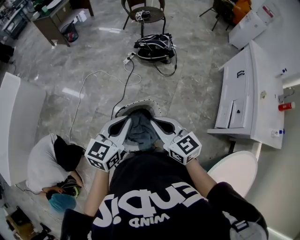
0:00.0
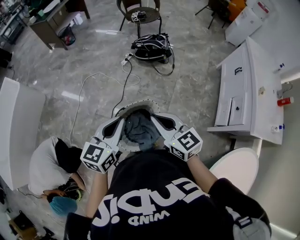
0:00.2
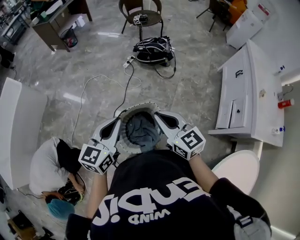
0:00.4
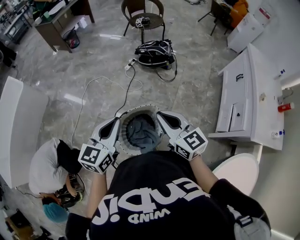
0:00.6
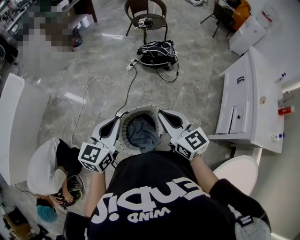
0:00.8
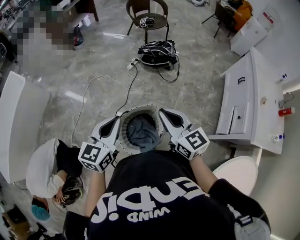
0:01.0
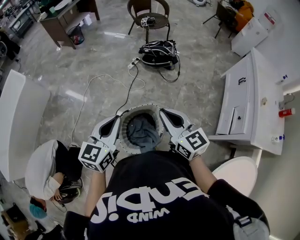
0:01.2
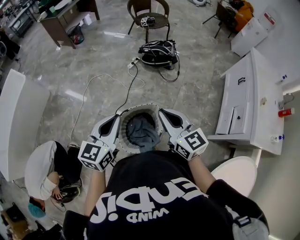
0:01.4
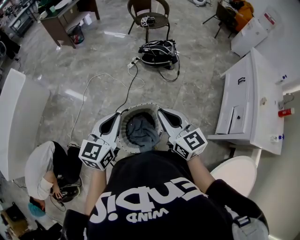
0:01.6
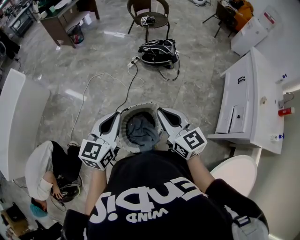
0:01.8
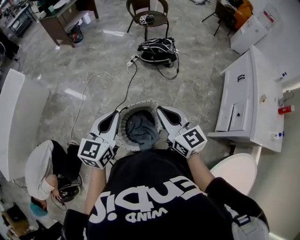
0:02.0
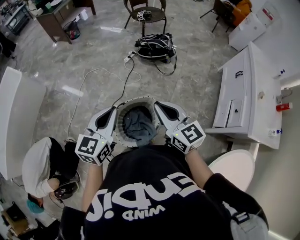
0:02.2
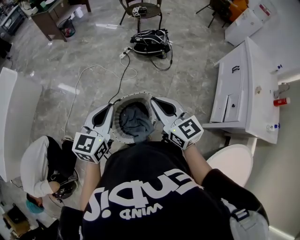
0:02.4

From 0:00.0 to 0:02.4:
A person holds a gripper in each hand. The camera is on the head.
From 0:00.0 to 0:01.2: The right gripper shifts by approximately 5 cm. The left gripper travels to the left by about 5 cm.
From 0:01.2 to 0:02.4: Both grippers stay about where they are.

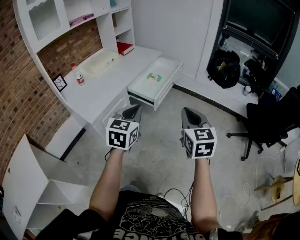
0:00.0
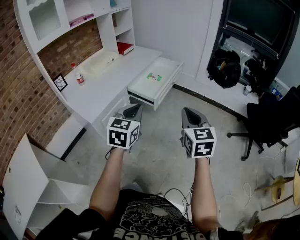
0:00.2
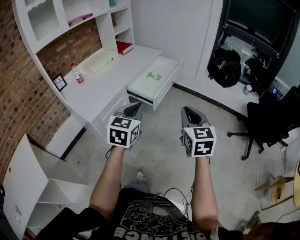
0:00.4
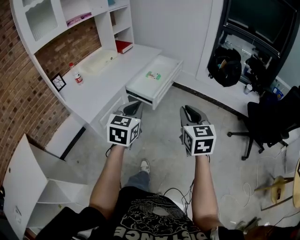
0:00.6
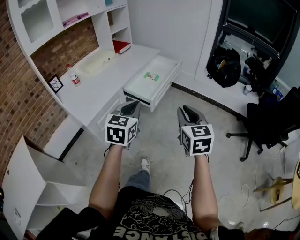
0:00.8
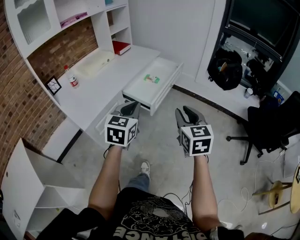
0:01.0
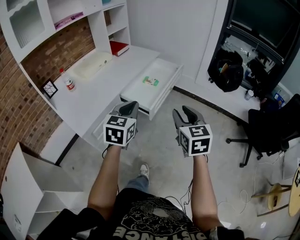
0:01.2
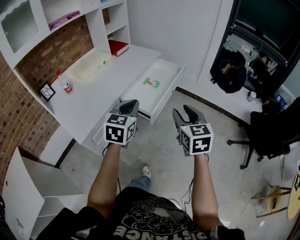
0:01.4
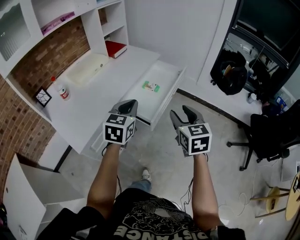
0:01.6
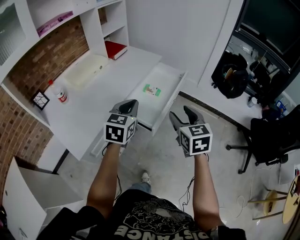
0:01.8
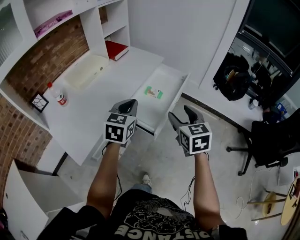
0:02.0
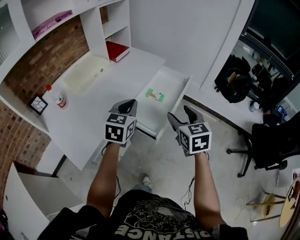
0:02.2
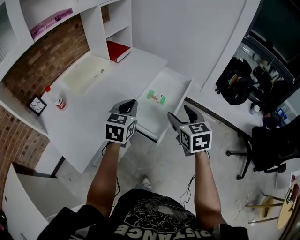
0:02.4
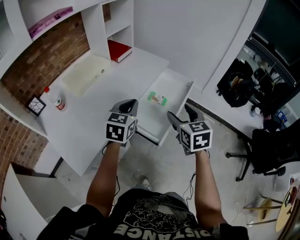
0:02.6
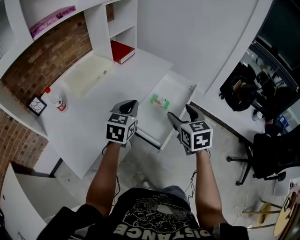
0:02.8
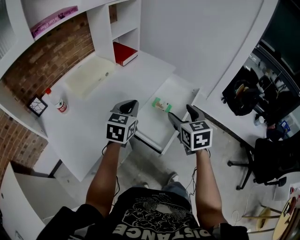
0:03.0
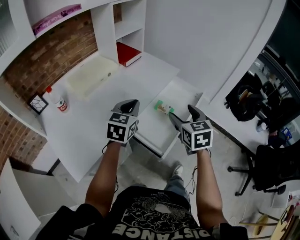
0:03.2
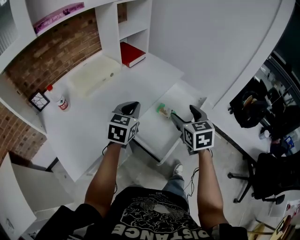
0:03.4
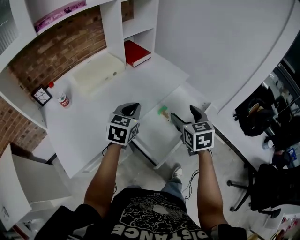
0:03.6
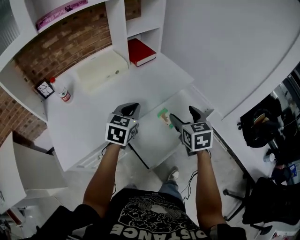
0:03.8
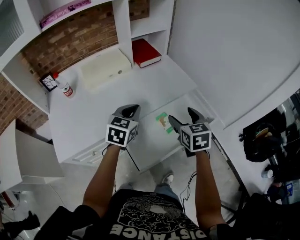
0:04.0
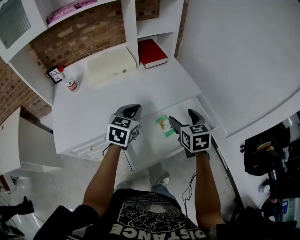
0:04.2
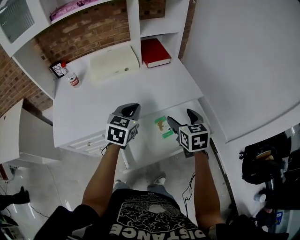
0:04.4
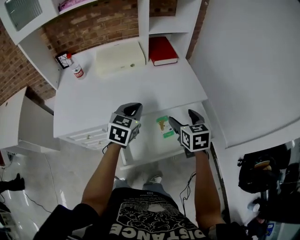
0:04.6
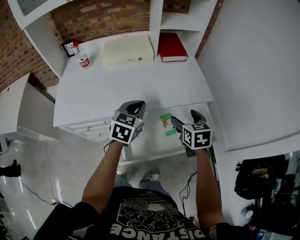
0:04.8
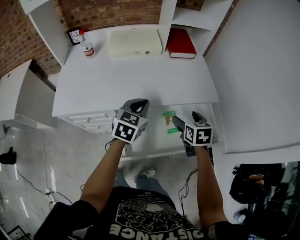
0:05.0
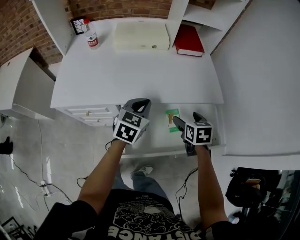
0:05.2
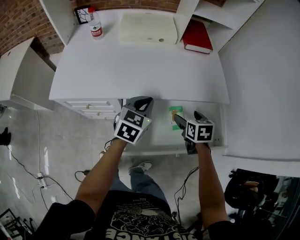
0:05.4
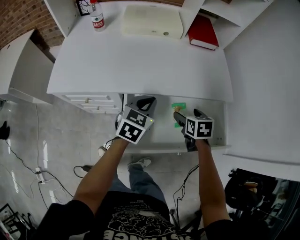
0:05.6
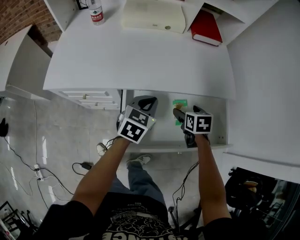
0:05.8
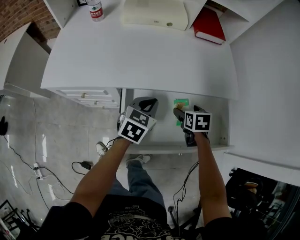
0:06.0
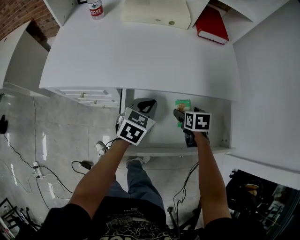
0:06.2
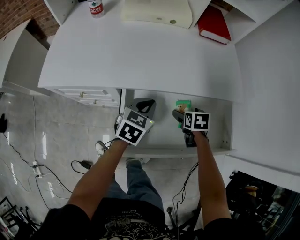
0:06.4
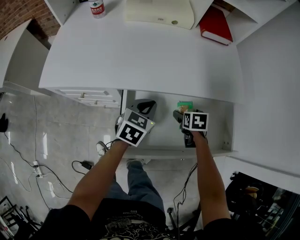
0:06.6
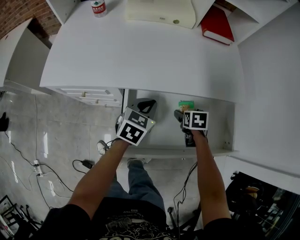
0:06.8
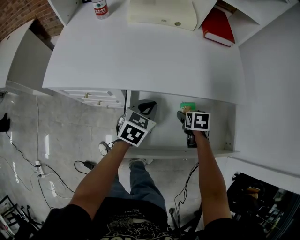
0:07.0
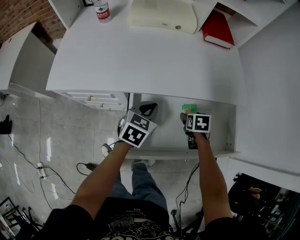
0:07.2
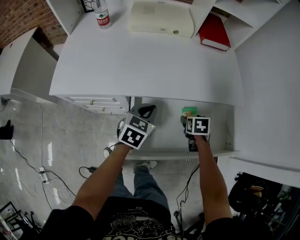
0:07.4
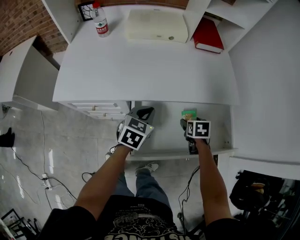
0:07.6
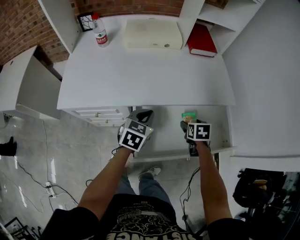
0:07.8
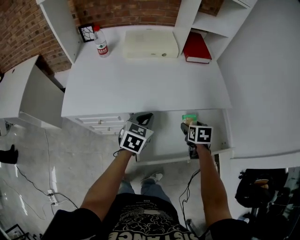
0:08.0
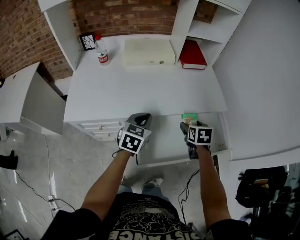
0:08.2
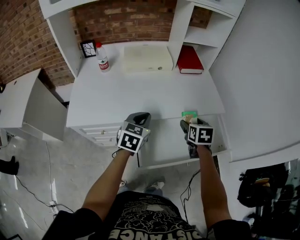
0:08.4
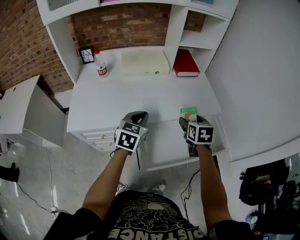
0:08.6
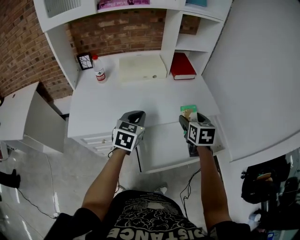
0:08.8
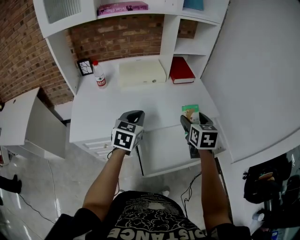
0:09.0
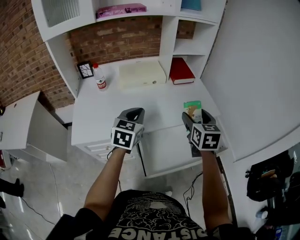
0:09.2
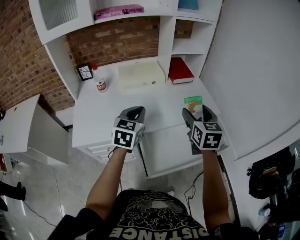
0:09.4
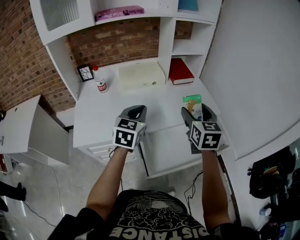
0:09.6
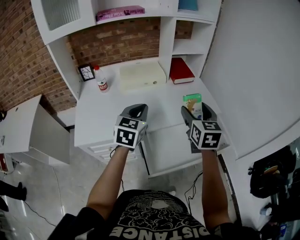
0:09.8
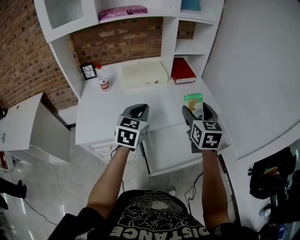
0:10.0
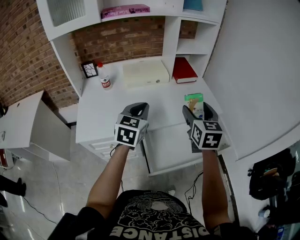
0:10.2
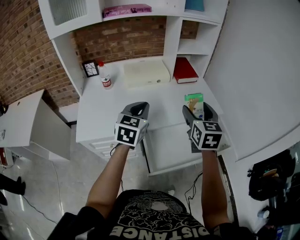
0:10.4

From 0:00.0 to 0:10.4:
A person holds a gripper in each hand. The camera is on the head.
From 0:00.0 to 0:01.4: Both grippers travel together forward, roughly 20 cm.
From 0:01.4 to 0:03.0: The grippers both shift forward by some 25 cm.
From 0:03.0 to 0:04.4: The right gripper moves some 20 cm, and rotates some 30 degrees. Meanwhile the left gripper ends up some 15 cm from where it was, and swivels about 30 degrees.
From 0:04.4 to 0:06.0: Both grippers move downward, approximately 20 cm. The right gripper rotates roughly 30 degrees.
From 0:06.0 to 0:07.4: The grippers stay close to where they were, moving slightly.
From 0:07.4 to 0:09.0: The right gripper travels upward by roughly 35 cm, and angles its fingers upward, by about 40 degrees. Meanwhile the left gripper shifts roughly 20 cm upward.
From 0:09.0 to 0:10.4: Both grippers travel together upward, about 5 cm.

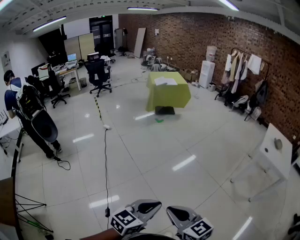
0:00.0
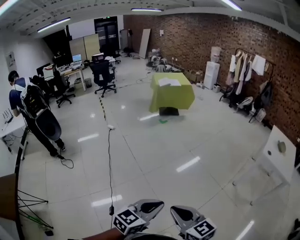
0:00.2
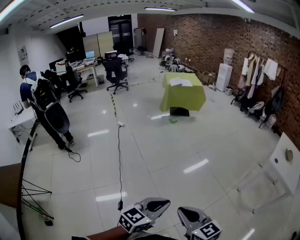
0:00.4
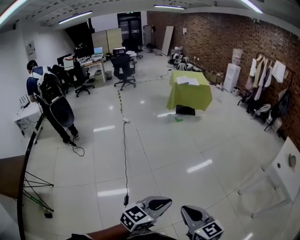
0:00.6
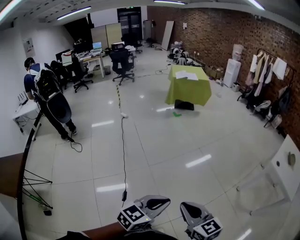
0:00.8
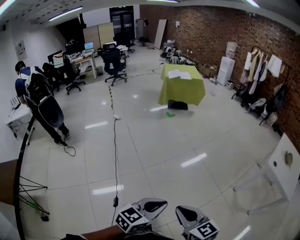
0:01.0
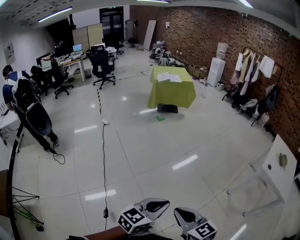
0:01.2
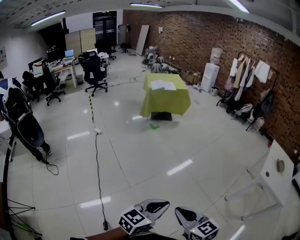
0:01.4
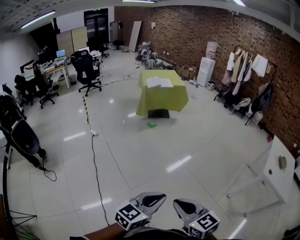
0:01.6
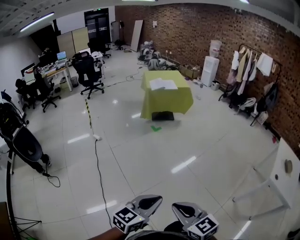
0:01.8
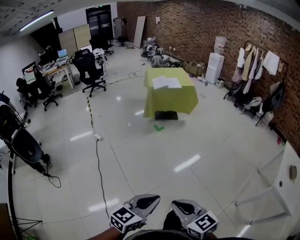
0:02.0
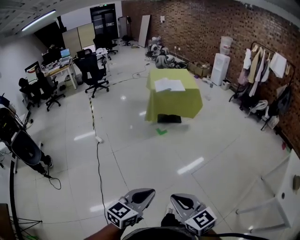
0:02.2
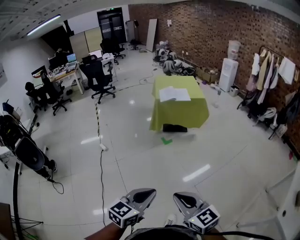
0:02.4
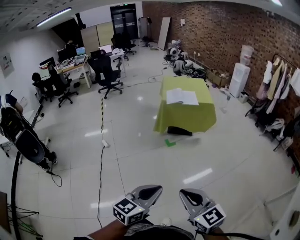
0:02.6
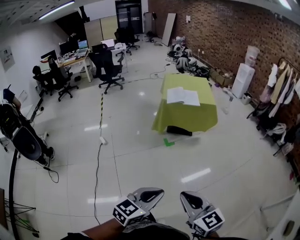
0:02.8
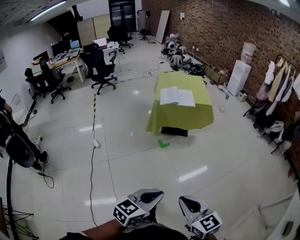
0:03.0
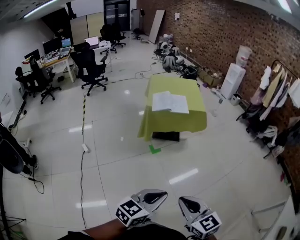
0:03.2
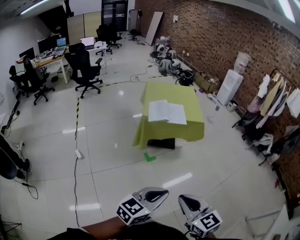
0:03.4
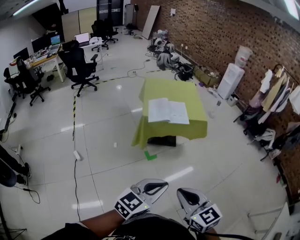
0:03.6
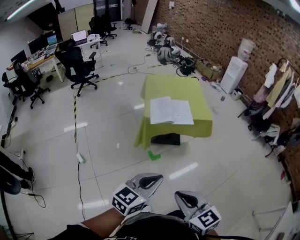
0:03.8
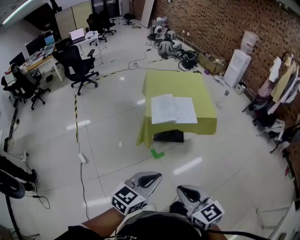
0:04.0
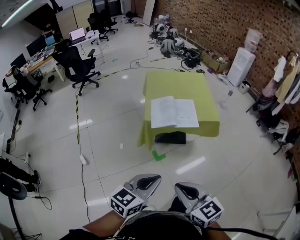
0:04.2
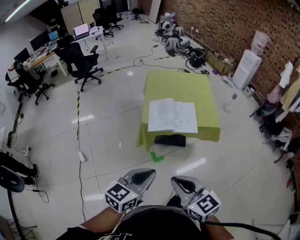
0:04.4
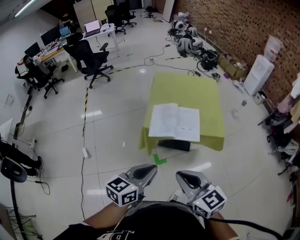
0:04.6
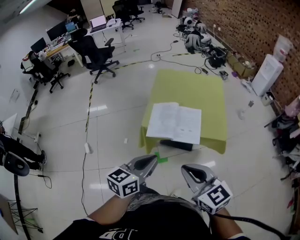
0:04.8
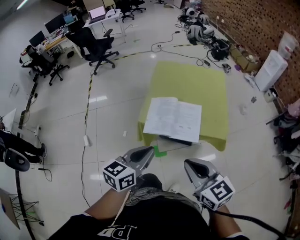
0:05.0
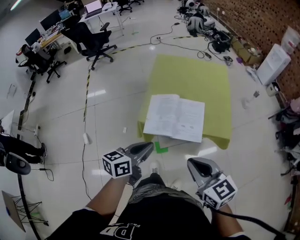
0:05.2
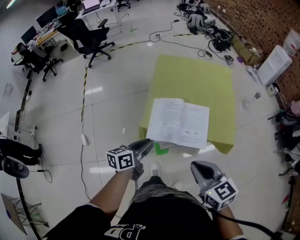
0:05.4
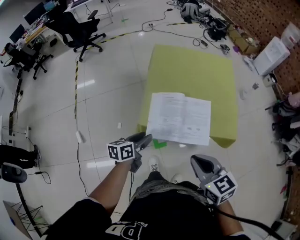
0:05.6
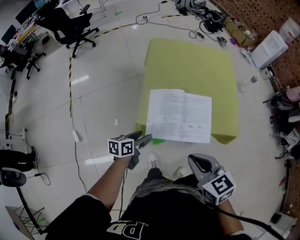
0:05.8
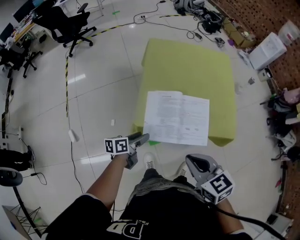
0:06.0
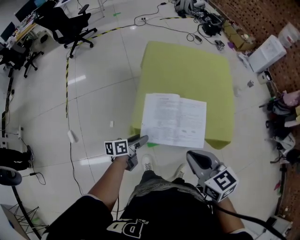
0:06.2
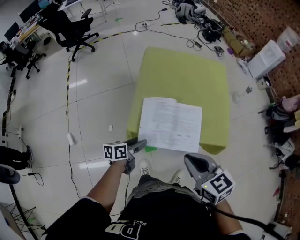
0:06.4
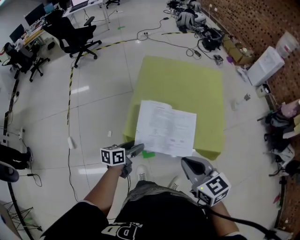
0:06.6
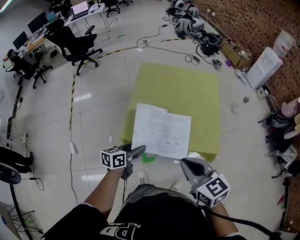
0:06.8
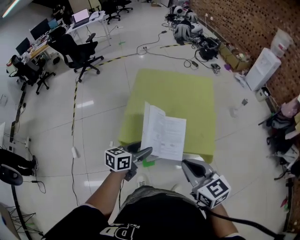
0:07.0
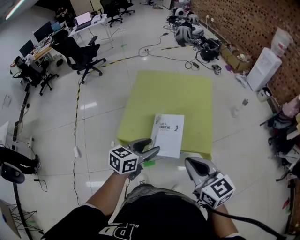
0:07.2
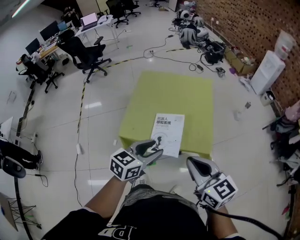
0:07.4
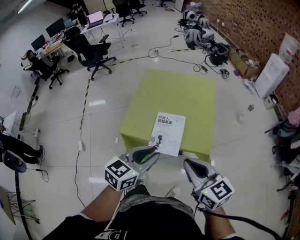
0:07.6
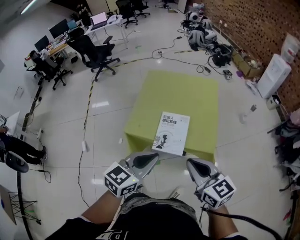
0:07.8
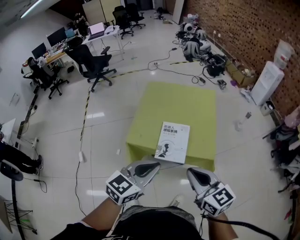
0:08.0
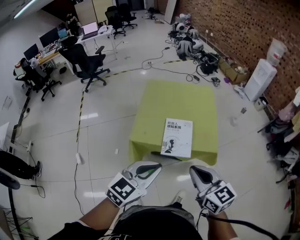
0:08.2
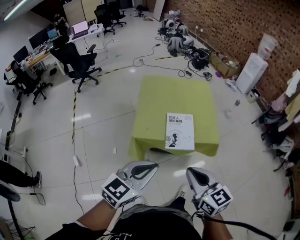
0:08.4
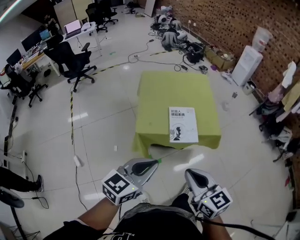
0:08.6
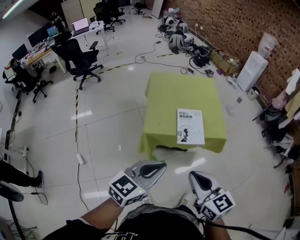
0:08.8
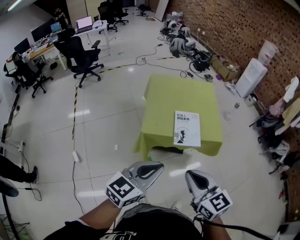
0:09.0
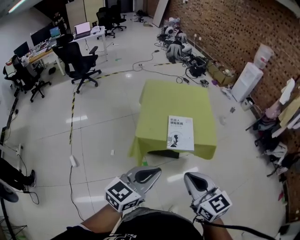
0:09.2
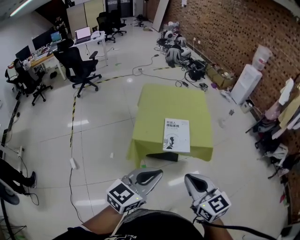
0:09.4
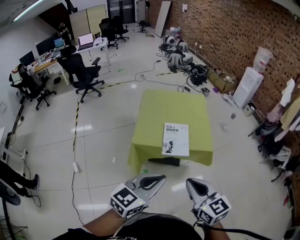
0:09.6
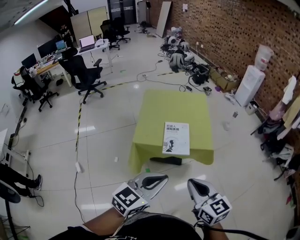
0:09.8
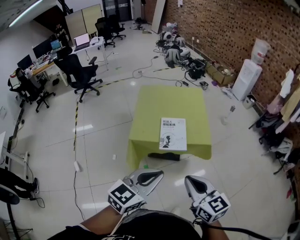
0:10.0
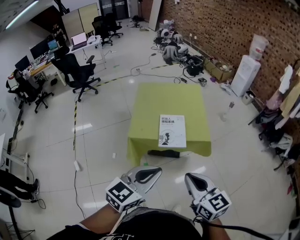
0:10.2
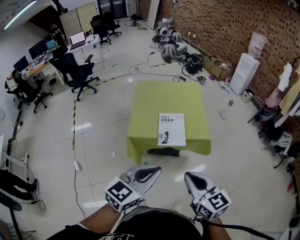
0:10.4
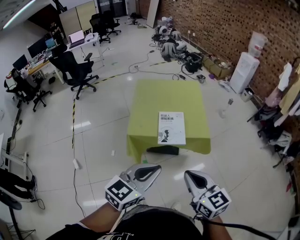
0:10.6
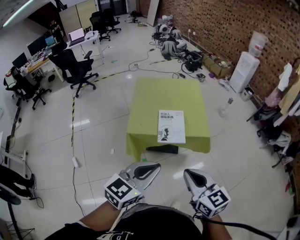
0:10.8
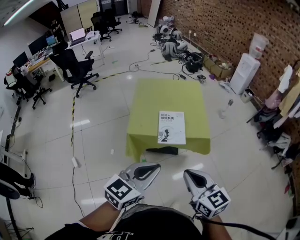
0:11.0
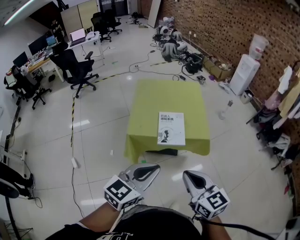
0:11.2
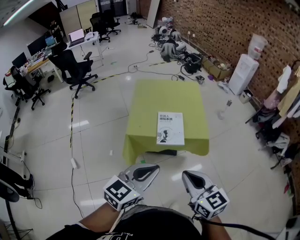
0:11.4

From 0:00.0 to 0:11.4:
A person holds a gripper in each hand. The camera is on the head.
From 0:00.0 to 0:01.4: The grippers both shift forward and to the right by roughly 25 cm.
From 0:01.4 to 0:02.8: The pair of grippers is taken forward, some 60 cm.
From 0:02.8 to 0:04.2: The pair of grippers is taken forward, some 50 cm.
From 0:04.2 to 0:05.6: The left gripper heads forward and downward, covering about 40 cm, rotates approximately 40 degrees, and opens its fingers; the right gripper moves forward, roughly 35 cm.
From 0:05.6 to 0:07.2: Both grippers travel together to the right and upward, roughly 20 cm. The left gripper swivels roughly 30 degrees.
From 0:07.2 to 0:08.6: The left gripper is displaced backward, to the left and upward by about 25 cm, and closes its fingers. The right gripper heads to the left and backward, covering approximately 20 cm.
From 0:08.6 to 0:10.0: Both grippers travel together to the right, some 10 cm.
From 0:10.0 to 0:11.4: Both grippers stay about where they are.
